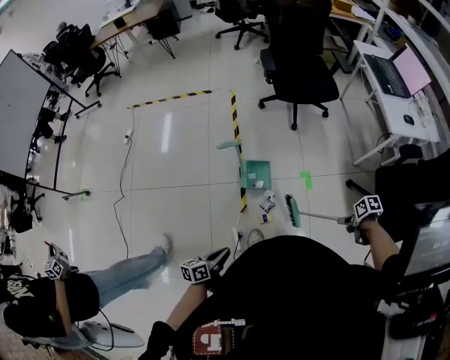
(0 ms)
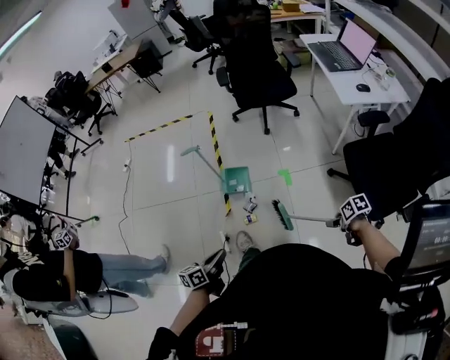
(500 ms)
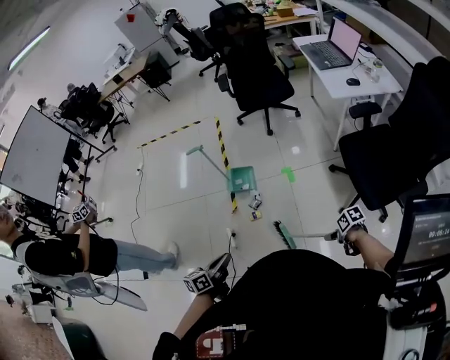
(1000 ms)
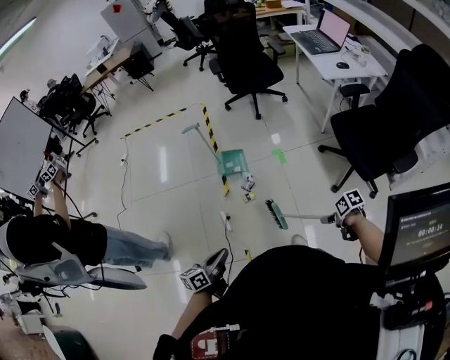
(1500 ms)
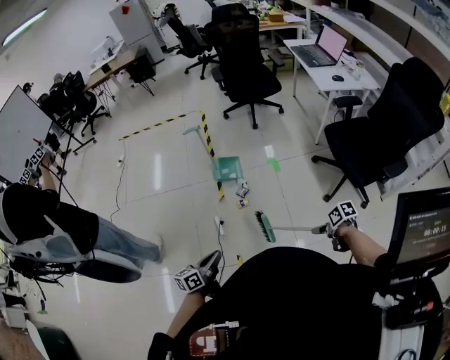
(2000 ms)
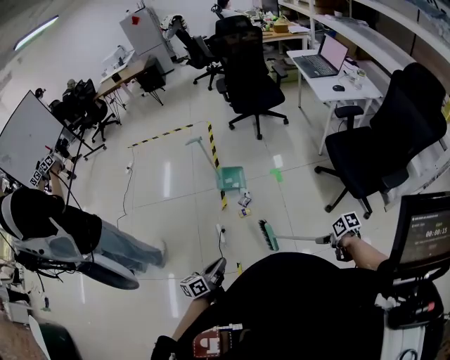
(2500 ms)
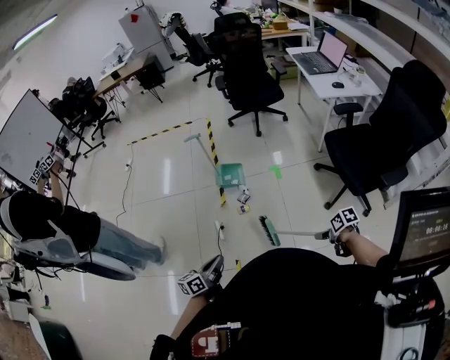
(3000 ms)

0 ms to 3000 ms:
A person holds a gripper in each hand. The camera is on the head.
0 ms to 1500 ms: The left gripper shifts by about 30 cm.
1500 ms to 3000 ms: The left gripper shifts by about 5 cm.

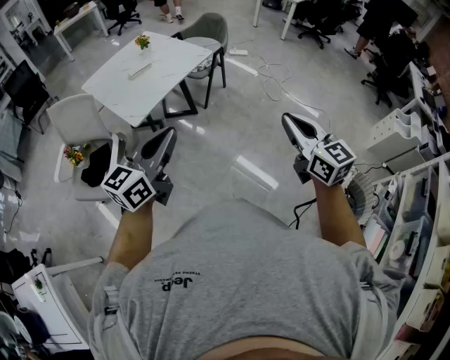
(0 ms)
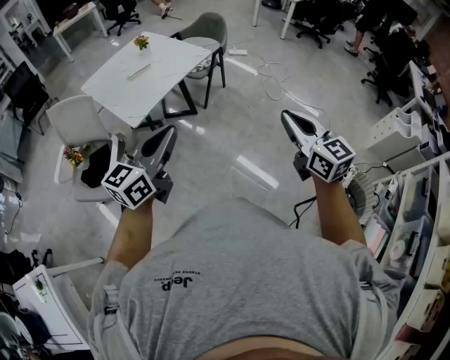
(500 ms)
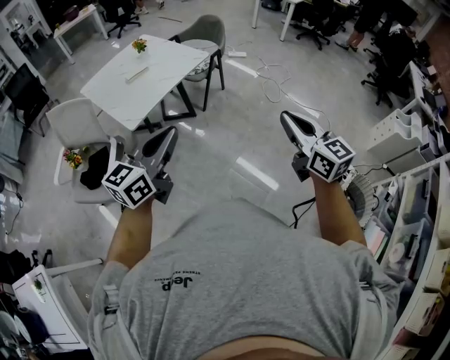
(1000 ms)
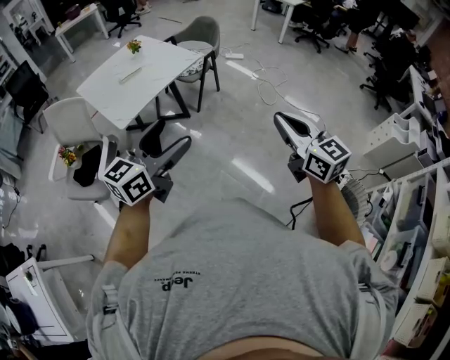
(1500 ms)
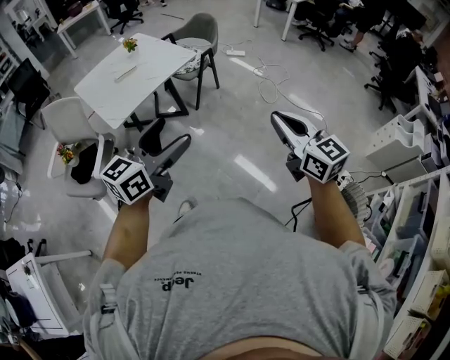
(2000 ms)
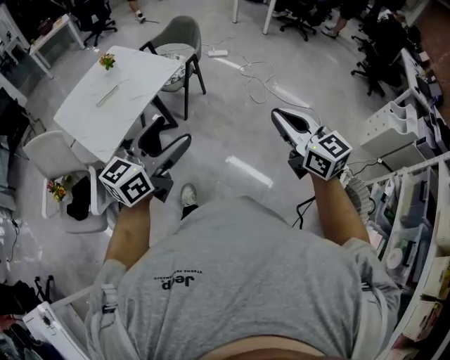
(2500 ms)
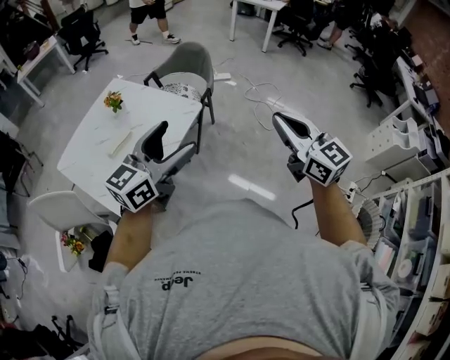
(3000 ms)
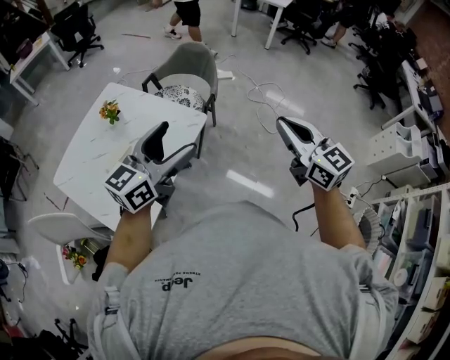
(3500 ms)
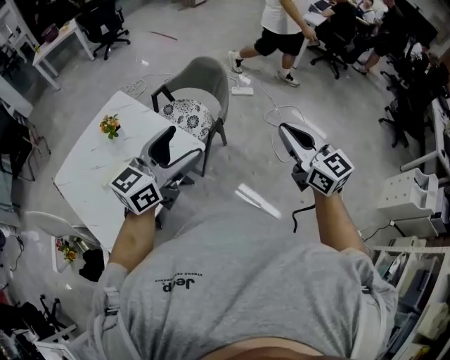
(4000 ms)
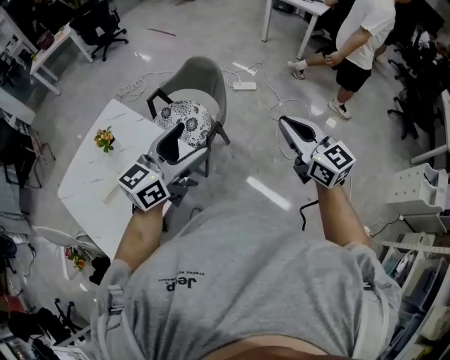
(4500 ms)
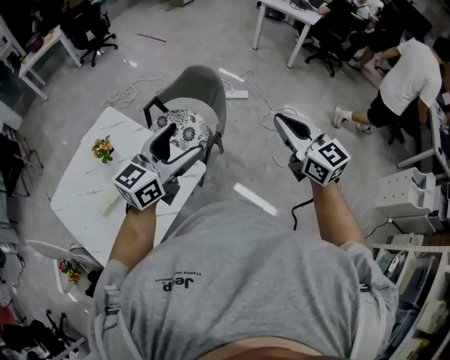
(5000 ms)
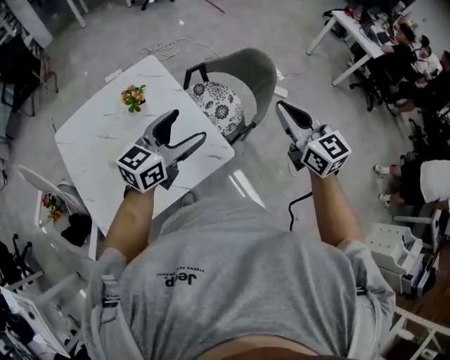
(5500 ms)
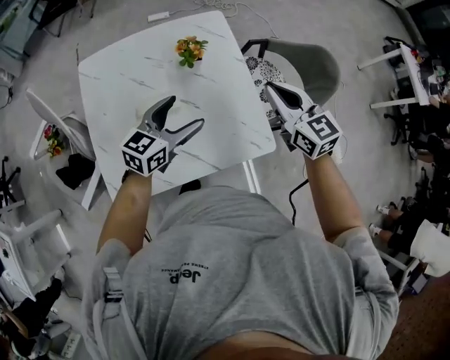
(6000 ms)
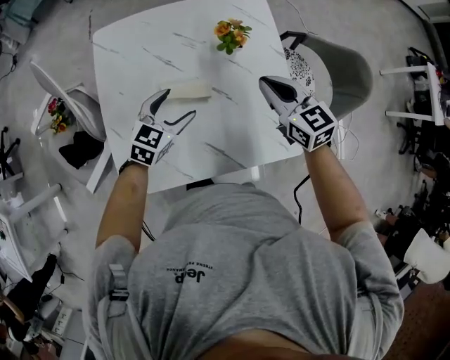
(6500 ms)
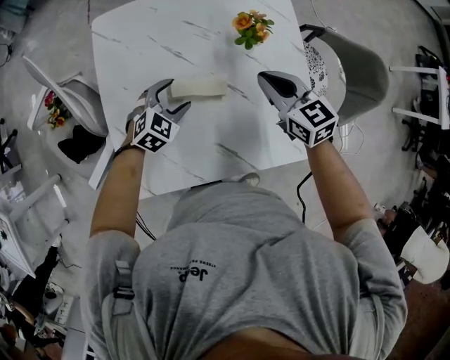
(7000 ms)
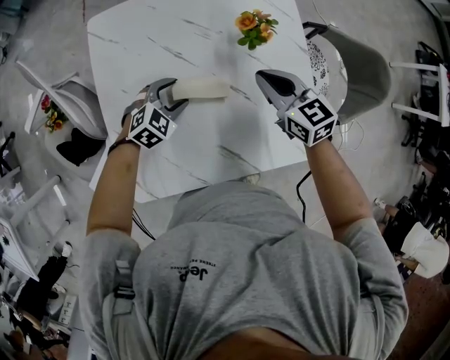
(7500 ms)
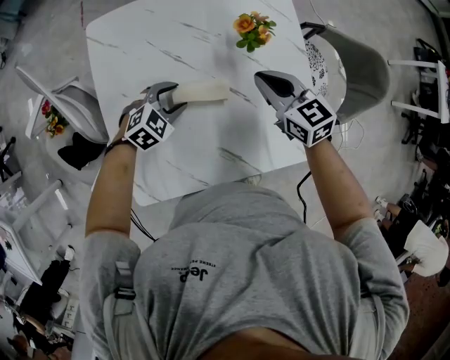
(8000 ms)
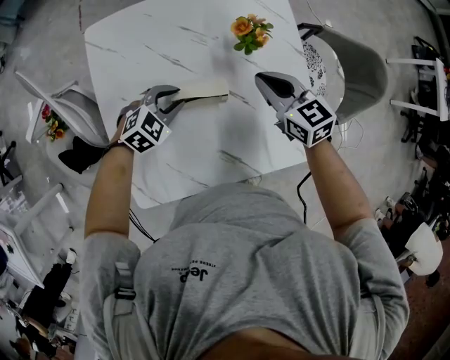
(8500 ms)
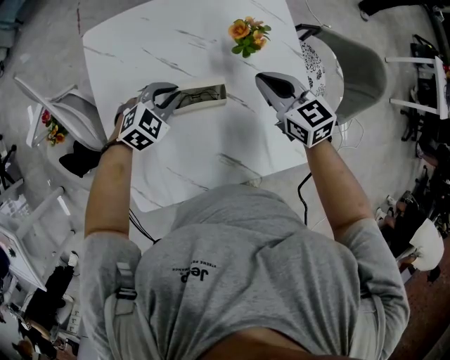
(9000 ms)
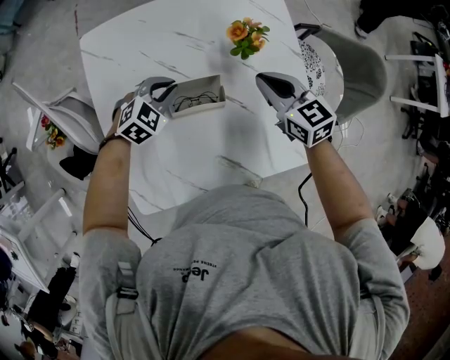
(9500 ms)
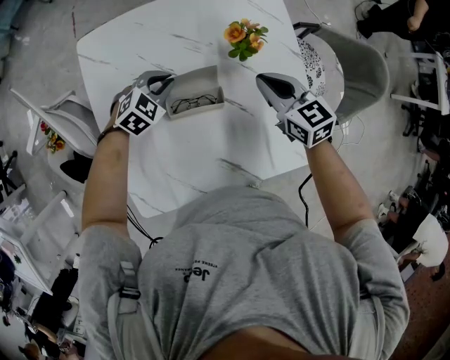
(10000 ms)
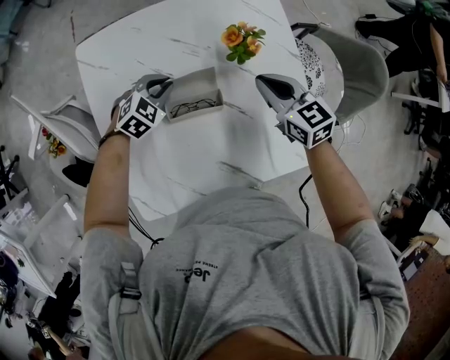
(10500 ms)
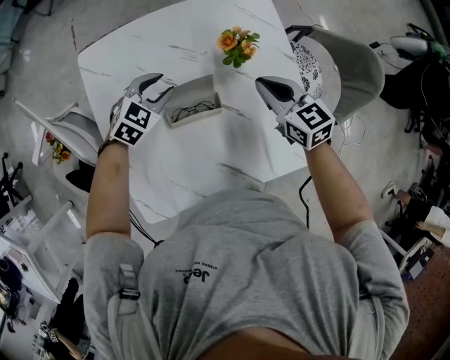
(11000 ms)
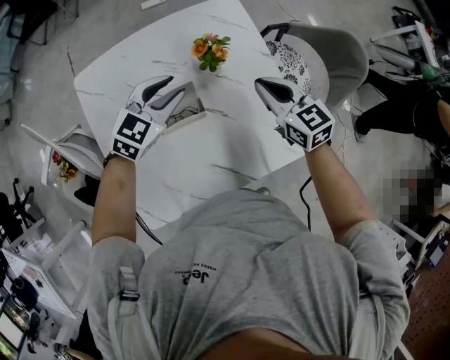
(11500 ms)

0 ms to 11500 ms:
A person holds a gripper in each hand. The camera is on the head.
0 ms to 2000 ms: The two grippers go approximately 15 cm to the right. The left gripper opens up.
2000 ms to 4000 ms: The two grippers travel together, forward, approximately 60 cm.
4000 ms to 6000 ms: The left gripper changes place by some 40 cm, and changes its angle by about 40 degrees. The right gripper moves approximately 50 cm, and swivels approximately 40 degrees.
6000 ms to 7500 ms: The left gripper goes some 30 cm downward and to the left, and angles its fingers downward, by roughly 30 degrees; the right gripper travels to the left, downward and forward by about 25 cm.
7500 ms to 9500 ms: The left gripper heads forward, covering about 5 cm, and closes its fingers.
9500 ms to 11500 ms: The right gripper travels to the right and upward by roughly 10 cm; the left gripper travels upward and to the right by roughly 15 cm.

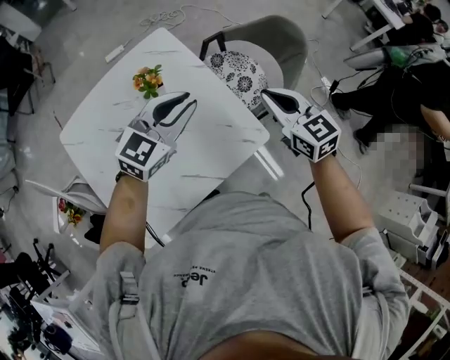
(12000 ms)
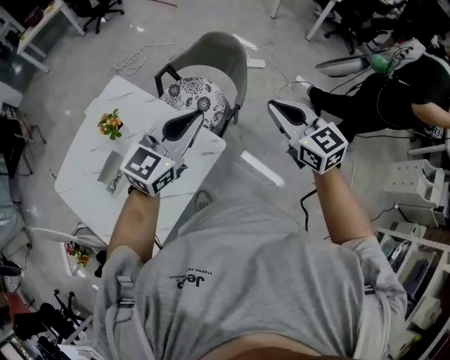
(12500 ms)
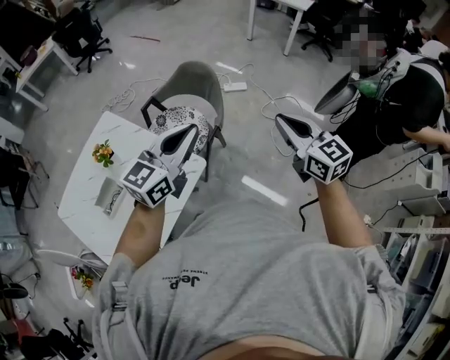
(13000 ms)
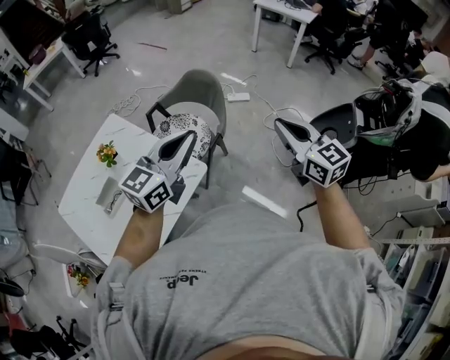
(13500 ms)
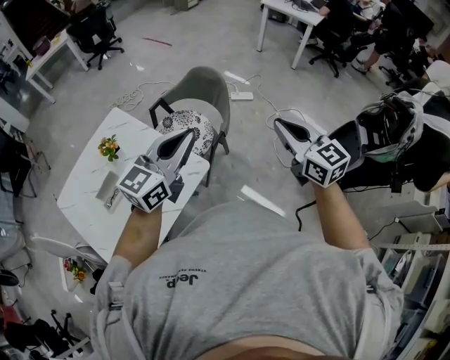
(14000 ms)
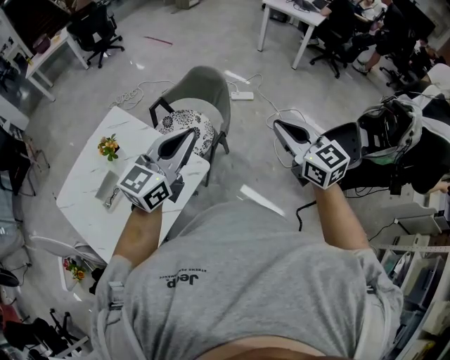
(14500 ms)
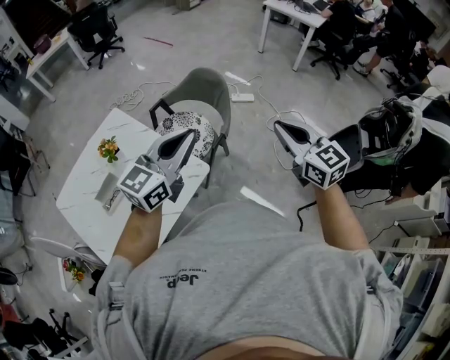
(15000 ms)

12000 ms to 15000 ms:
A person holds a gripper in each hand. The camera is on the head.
12000 ms to 13500 ms: Both grippers move to the right and upward, some 35 cm. The left gripper turns by approximately 20 degrees; the right gripper swivels roughly 30 degrees.
13500 ms to 15000 ms: The grippers make only small movements.

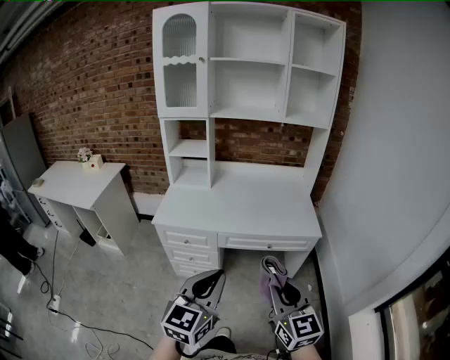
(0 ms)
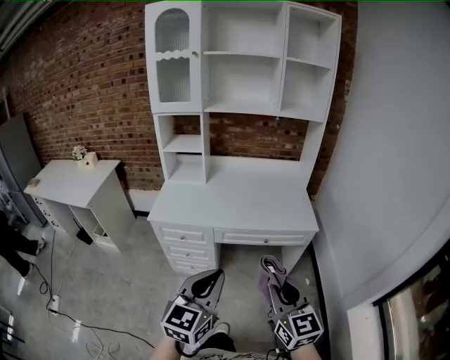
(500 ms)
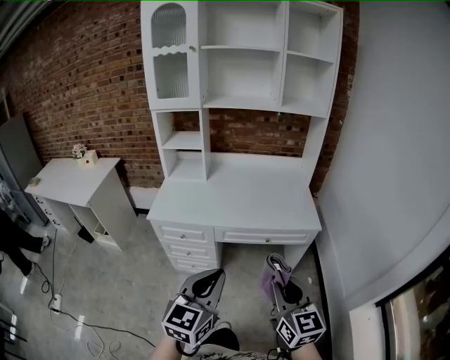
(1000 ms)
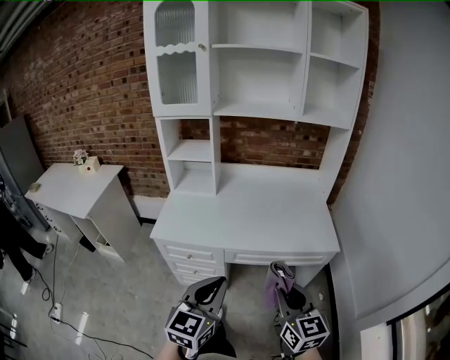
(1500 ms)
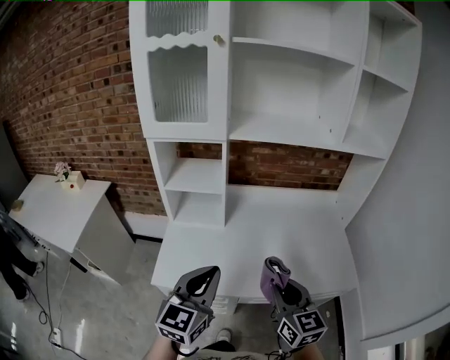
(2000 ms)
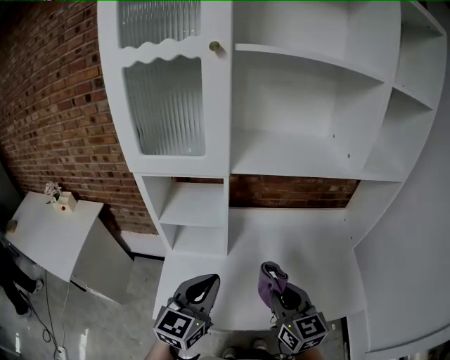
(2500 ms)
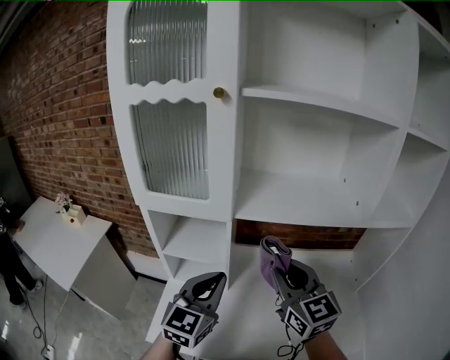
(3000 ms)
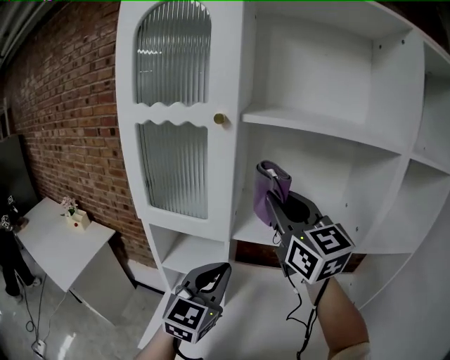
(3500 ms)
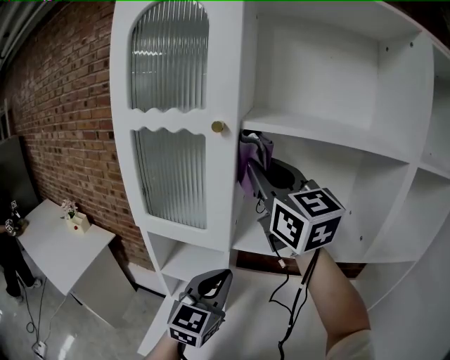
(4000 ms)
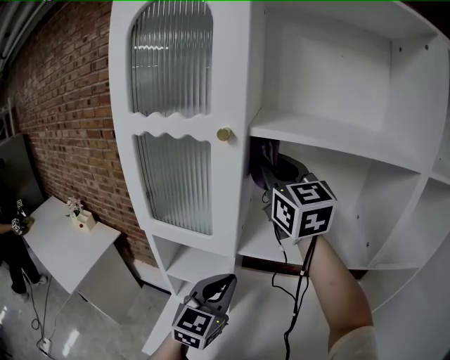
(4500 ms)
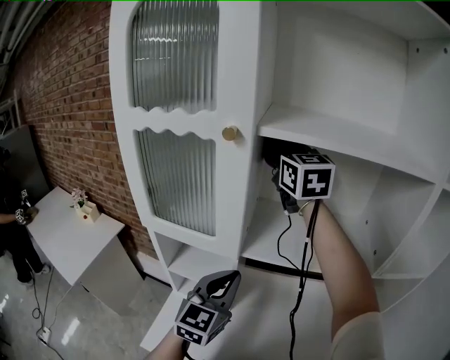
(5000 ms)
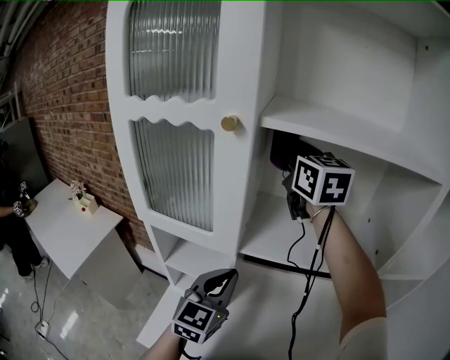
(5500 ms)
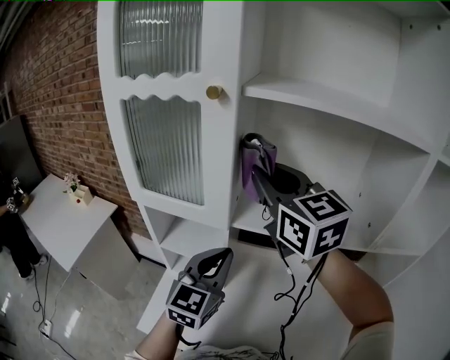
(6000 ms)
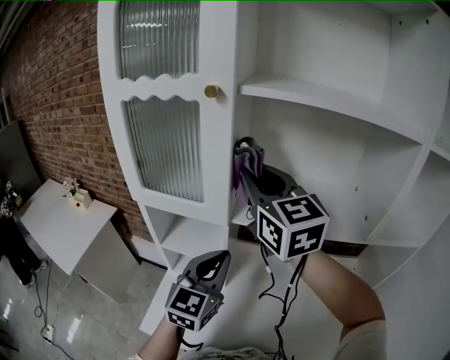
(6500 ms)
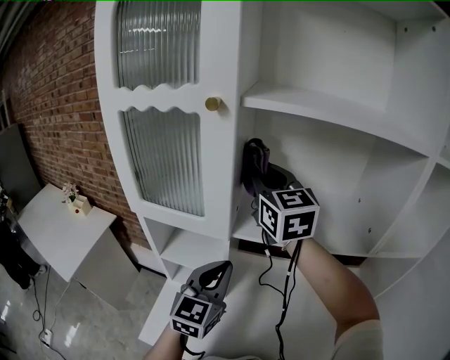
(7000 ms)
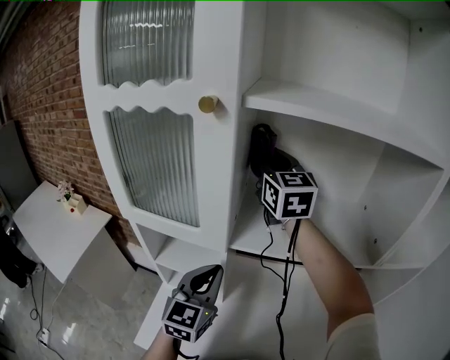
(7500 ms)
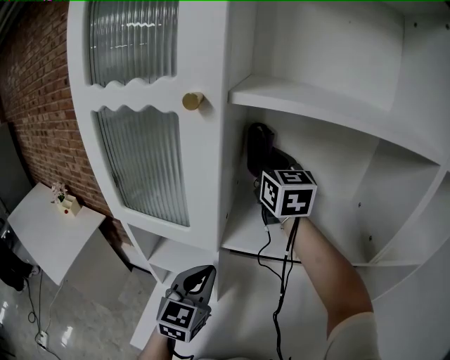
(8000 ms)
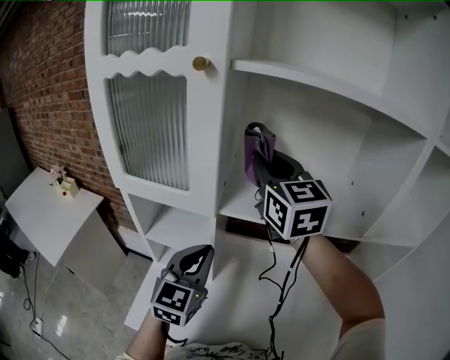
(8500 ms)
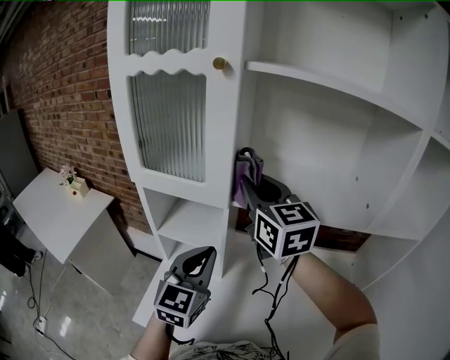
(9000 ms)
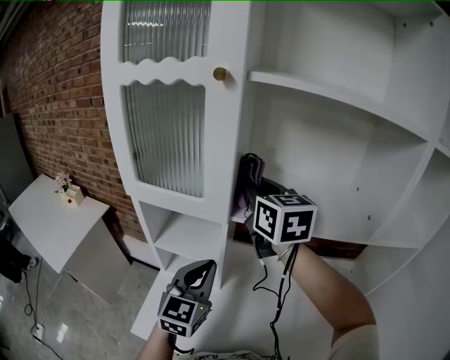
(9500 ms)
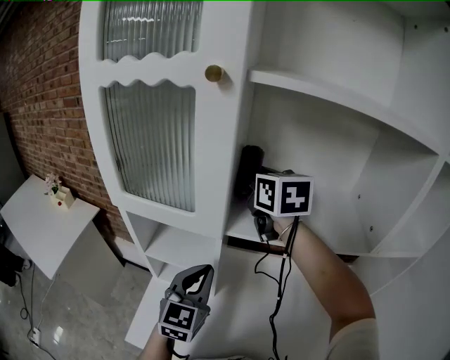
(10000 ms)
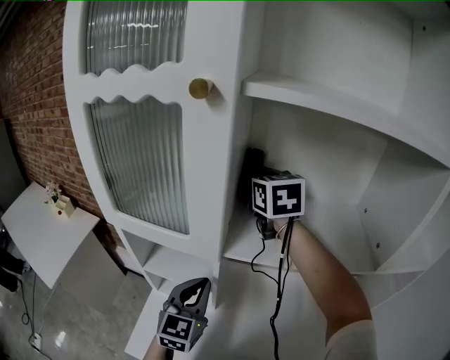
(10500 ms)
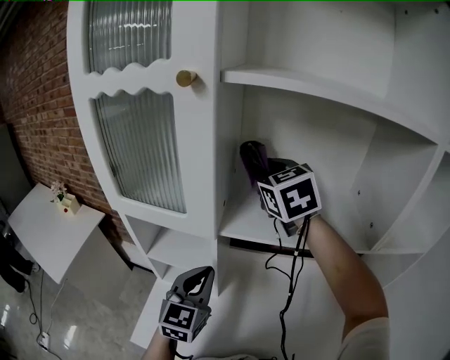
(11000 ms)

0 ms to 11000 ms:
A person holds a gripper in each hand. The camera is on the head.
0 ms to 2000 ms: The pair of grippers is taken forward and to the left, about 40 cm.
2000 ms to 3500 ms: The left gripper travels forward and upward by some 30 cm, while the right gripper shifts about 50 cm forward and upward, and swivels roughly 30 degrees.
3500 ms to 5500 ms: The left gripper is displaced forward by some 5 cm, while the right gripper heads forward, covering approximately 20 cm.
5500 ms to 7500 ms: The right gripper goes approximately 5 cm downward, and goes backward and returns, roughly 15 cm each way.
7500 ms to 9000 ms: The left gripper is displaced backward by some 5 cm. Meanwhile the right gripper goes some 20 cm backward and downward.
9000 ms to 11000 ms: The left gripper heads forward, covering approximately 5 cm; the right gripper goes approximately 15 cm forward, and rotates roughly 20 degrees.
